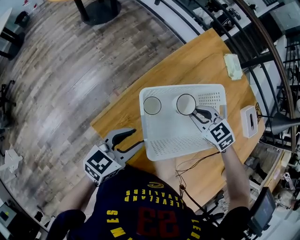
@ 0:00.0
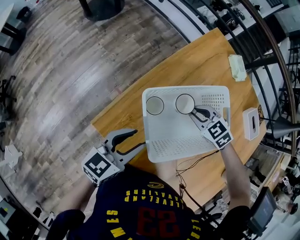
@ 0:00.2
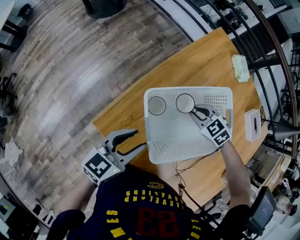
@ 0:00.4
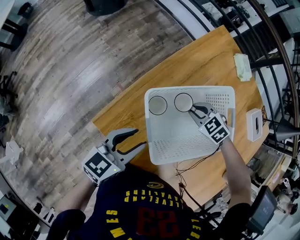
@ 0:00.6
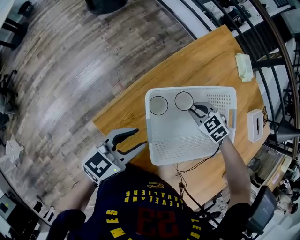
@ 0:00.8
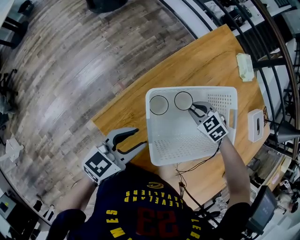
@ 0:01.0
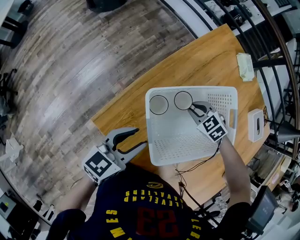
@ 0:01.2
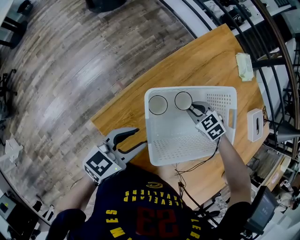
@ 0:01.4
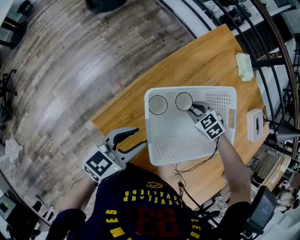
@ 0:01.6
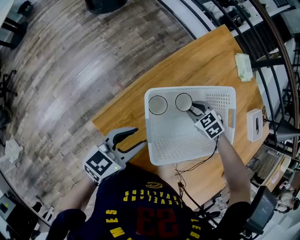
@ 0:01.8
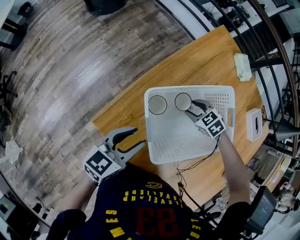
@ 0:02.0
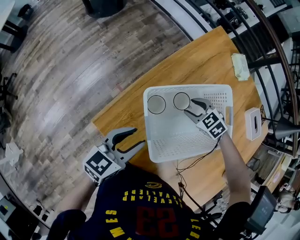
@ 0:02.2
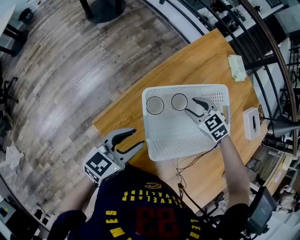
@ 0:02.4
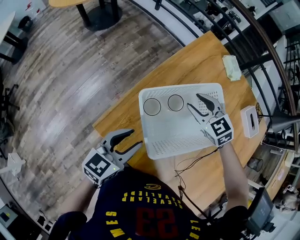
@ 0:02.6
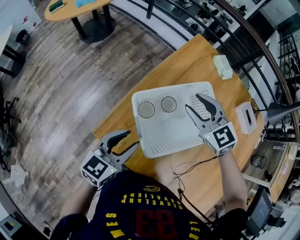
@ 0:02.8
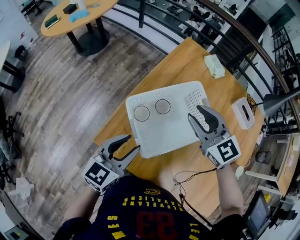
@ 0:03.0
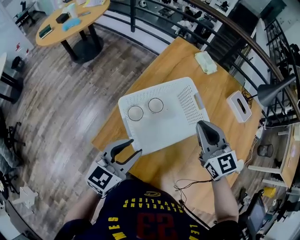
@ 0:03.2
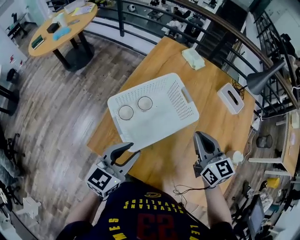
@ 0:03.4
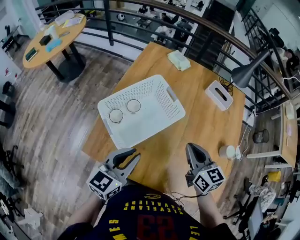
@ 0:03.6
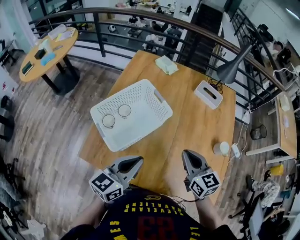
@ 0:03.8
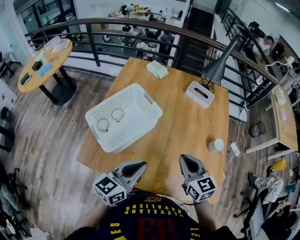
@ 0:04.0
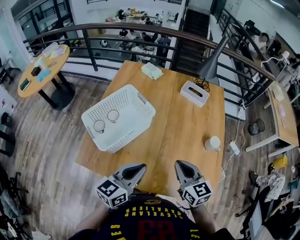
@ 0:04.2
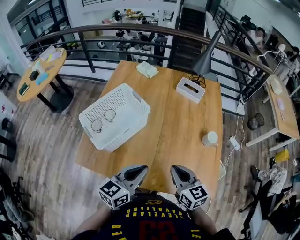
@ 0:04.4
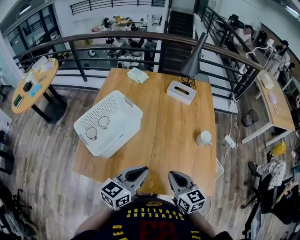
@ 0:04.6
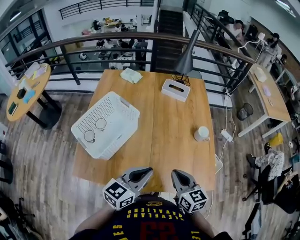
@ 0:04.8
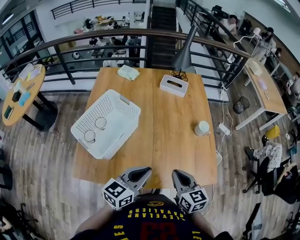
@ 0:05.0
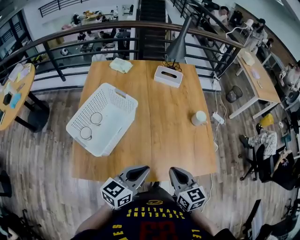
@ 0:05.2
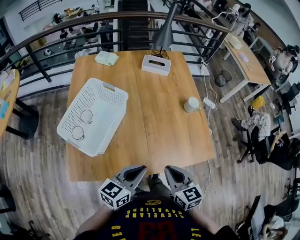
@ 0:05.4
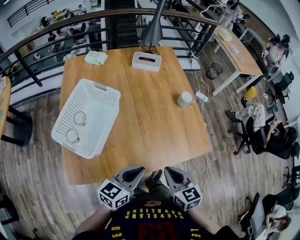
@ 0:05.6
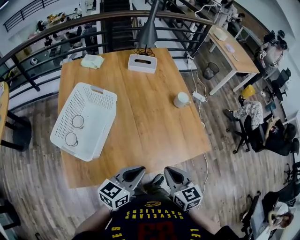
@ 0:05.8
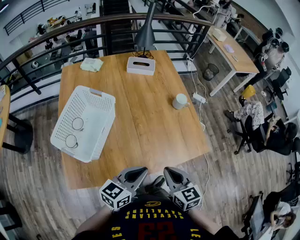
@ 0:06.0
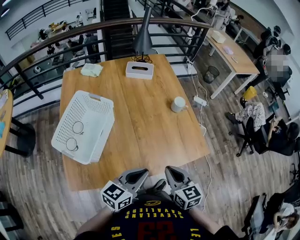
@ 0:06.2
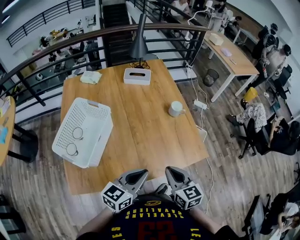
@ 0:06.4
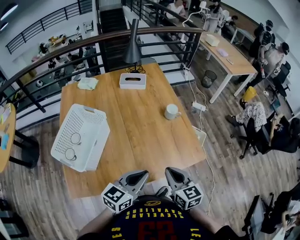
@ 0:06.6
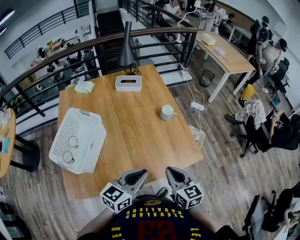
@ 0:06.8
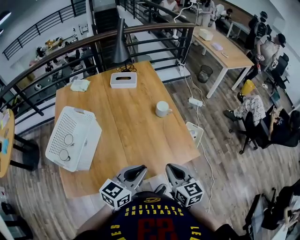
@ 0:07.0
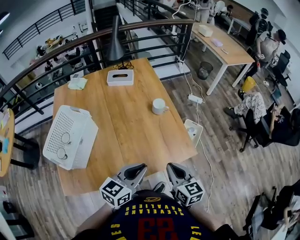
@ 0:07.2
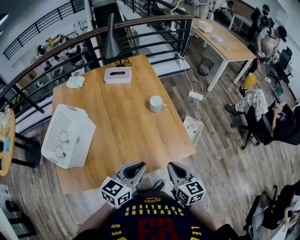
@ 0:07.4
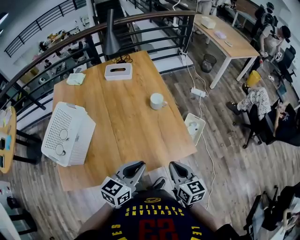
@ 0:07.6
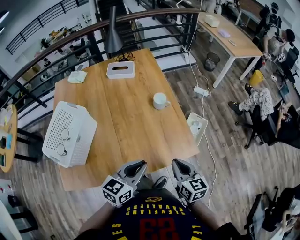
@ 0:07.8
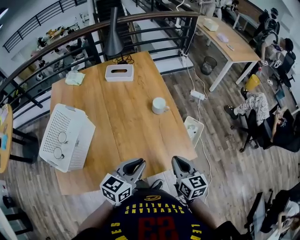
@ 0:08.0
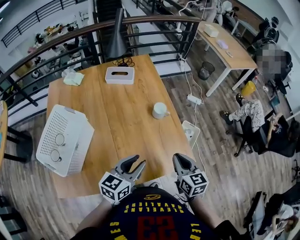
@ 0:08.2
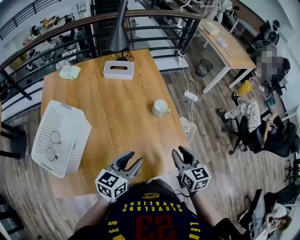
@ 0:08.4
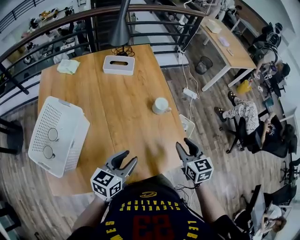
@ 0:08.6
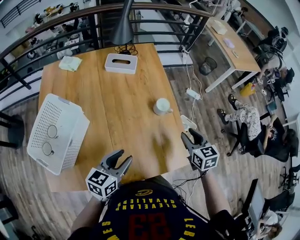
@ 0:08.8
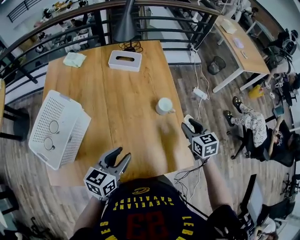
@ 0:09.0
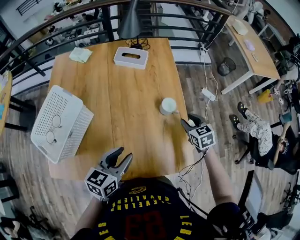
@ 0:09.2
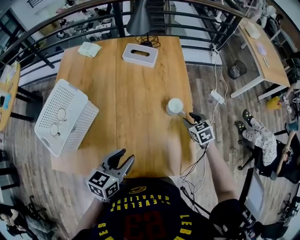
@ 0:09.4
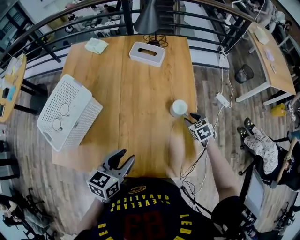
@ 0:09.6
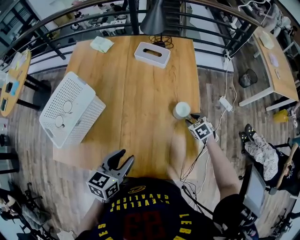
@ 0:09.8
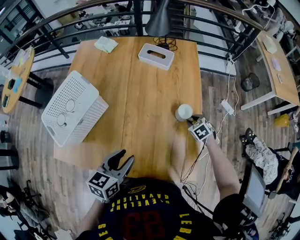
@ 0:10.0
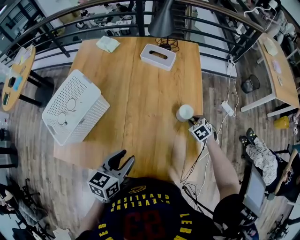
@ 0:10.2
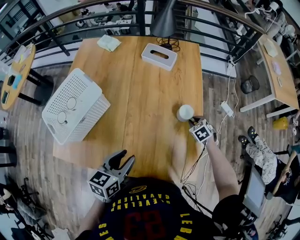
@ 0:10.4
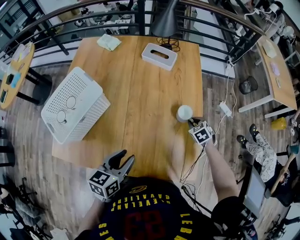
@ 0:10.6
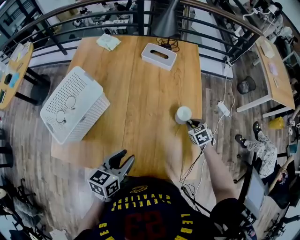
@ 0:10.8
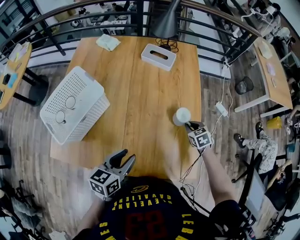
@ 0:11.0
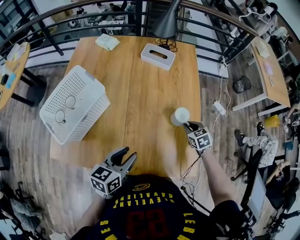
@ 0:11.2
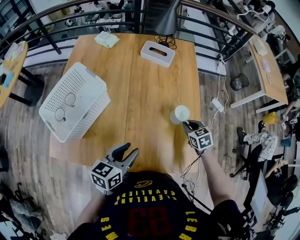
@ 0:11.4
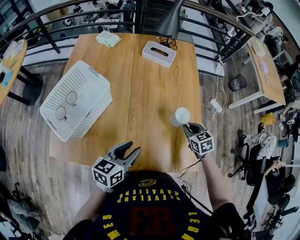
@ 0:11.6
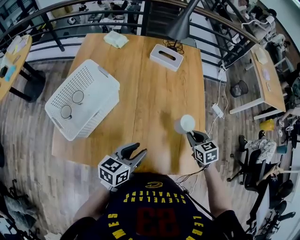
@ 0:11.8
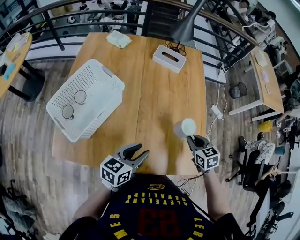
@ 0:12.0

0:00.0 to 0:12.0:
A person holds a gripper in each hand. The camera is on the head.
0:00.0 to 0:01.6: The right gripper shifts about 10 cm downward.
0:01.6 to 0:03.0: The left gripper is displaced upward by about 10 cm. The right gripper goes about 30 cm upward, tips its fingers upward by about 50 degrees, and opens.
0:03.0 to 0:04.4: The left gripper changes place by roughly 30 cm, swivels approximately 20 degrees, and closes its fingers. The right gripper moves some 40 cm, turns by roughly 40 degrees, and closes up.
0:04.4 to 0:06.0: The left gripper changes place by some 10 cm, and changes its angle by some 30 degrees. The right gripper ends up some 15 cm from where it was, and rotates some 30 degrees.
0:06.0 to 0:07.6: The left gripper goes roughly 15 cm to the right and forward, while the right gripper shifts roughly 20 cm to the right.
0:07.6 to 0:09.0: The right gripper moves forward, some 30 cm, rotates approximately 20 degrees, and opens its fingers; the left gripper shifts some 15 cm to the left and forward, and opens up.
0:09.0 to 0:10.4: The right gripper heads downward and forward, covering about 20 cm, turns by approximately 40 degrees, and closes its fingers.
0:10.4 to 0:12.0: The right gripper moves backward, upward and to the left, approximately 20 cm, and rotates roughly 30 degrees.

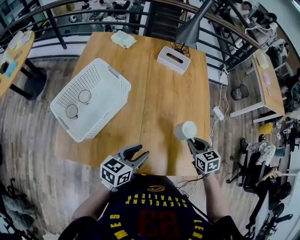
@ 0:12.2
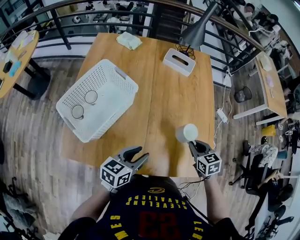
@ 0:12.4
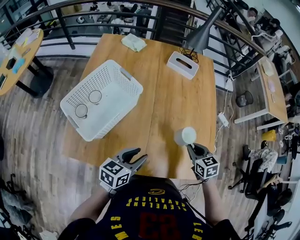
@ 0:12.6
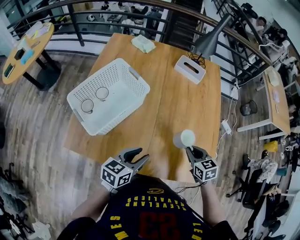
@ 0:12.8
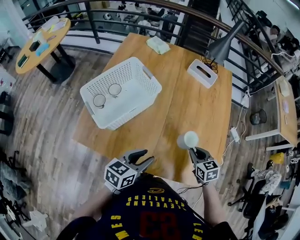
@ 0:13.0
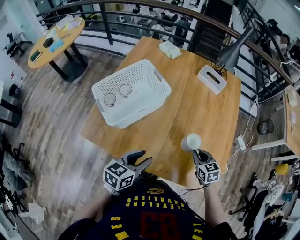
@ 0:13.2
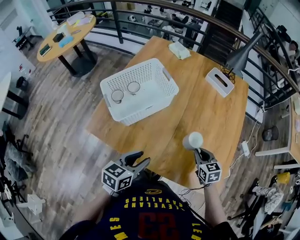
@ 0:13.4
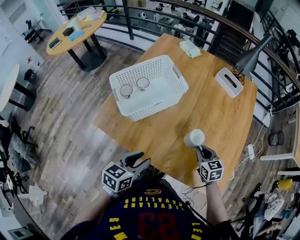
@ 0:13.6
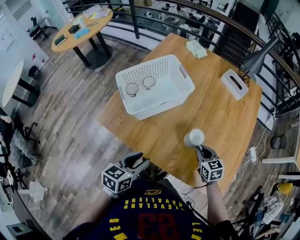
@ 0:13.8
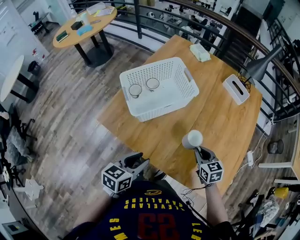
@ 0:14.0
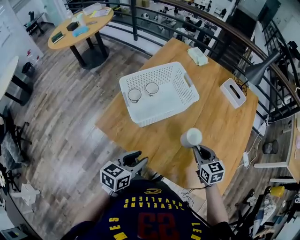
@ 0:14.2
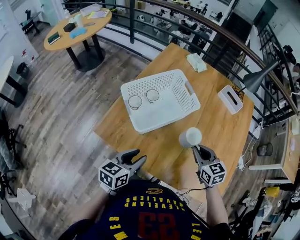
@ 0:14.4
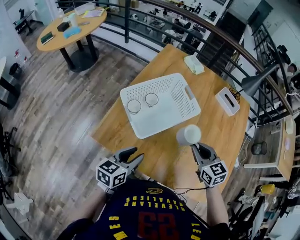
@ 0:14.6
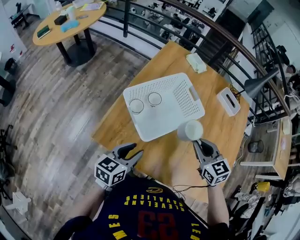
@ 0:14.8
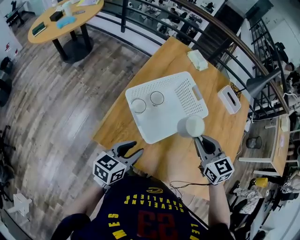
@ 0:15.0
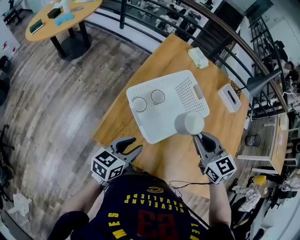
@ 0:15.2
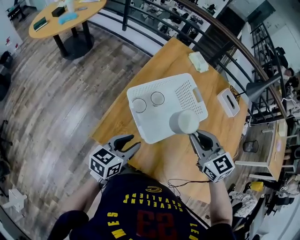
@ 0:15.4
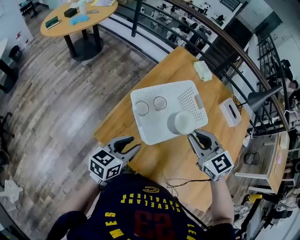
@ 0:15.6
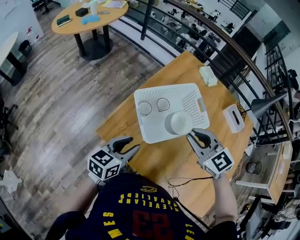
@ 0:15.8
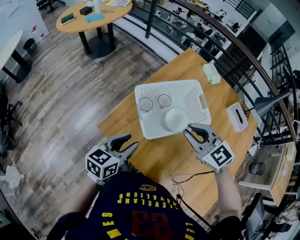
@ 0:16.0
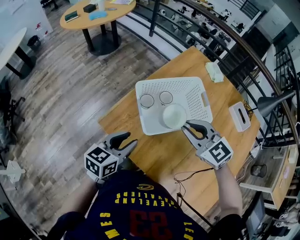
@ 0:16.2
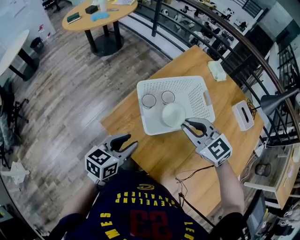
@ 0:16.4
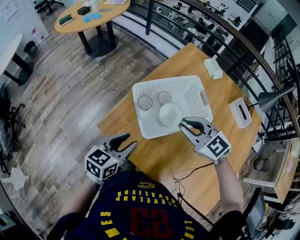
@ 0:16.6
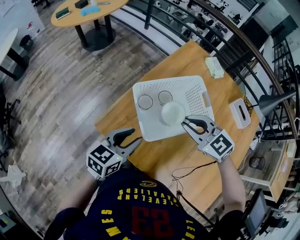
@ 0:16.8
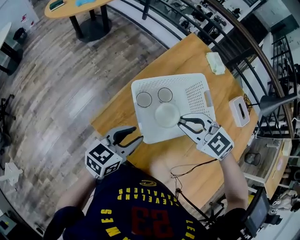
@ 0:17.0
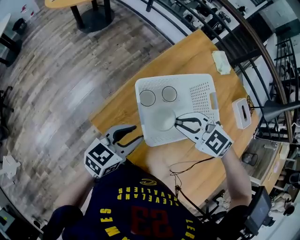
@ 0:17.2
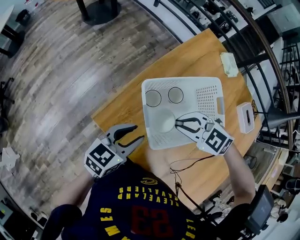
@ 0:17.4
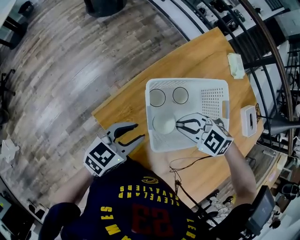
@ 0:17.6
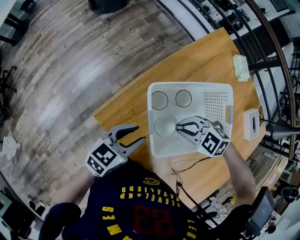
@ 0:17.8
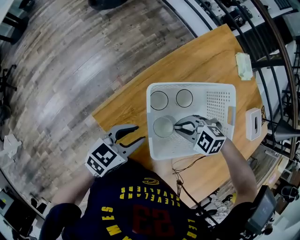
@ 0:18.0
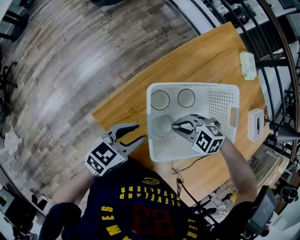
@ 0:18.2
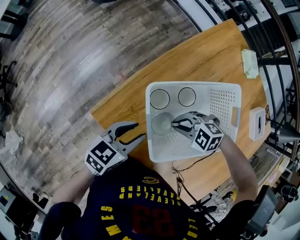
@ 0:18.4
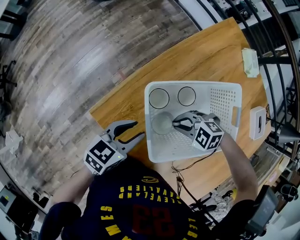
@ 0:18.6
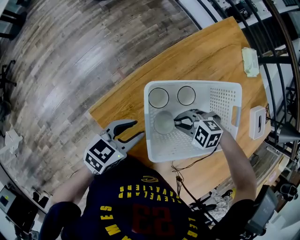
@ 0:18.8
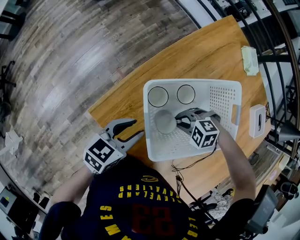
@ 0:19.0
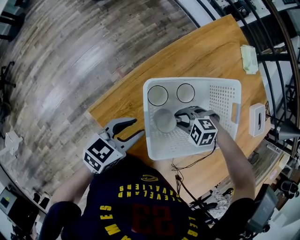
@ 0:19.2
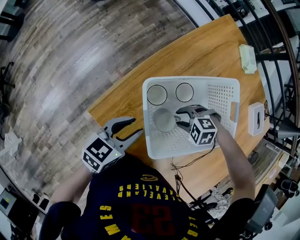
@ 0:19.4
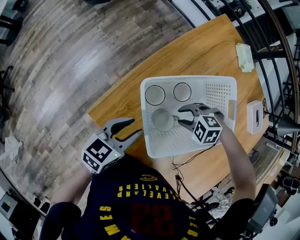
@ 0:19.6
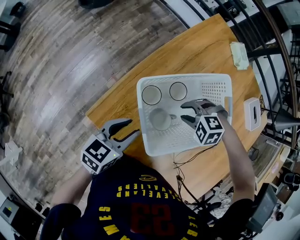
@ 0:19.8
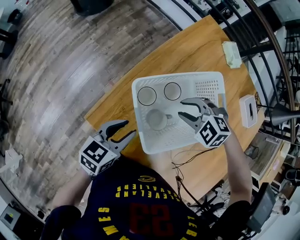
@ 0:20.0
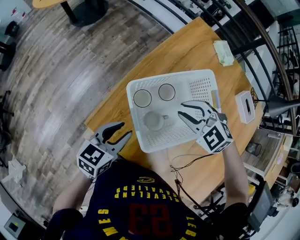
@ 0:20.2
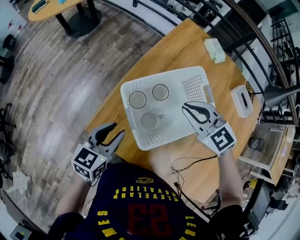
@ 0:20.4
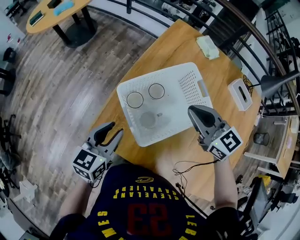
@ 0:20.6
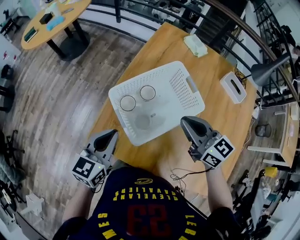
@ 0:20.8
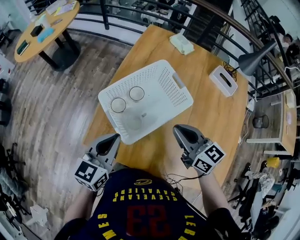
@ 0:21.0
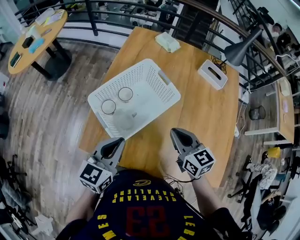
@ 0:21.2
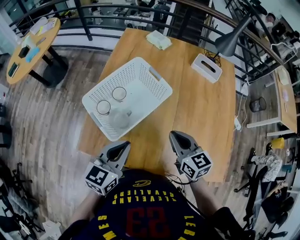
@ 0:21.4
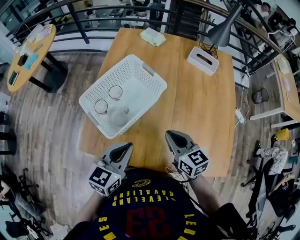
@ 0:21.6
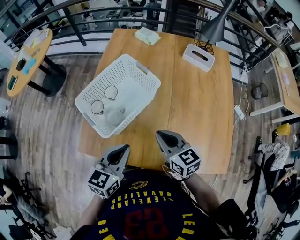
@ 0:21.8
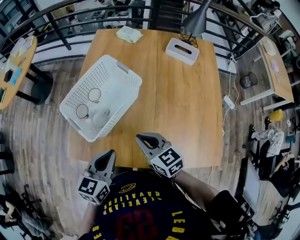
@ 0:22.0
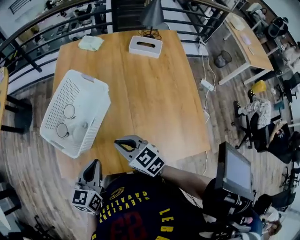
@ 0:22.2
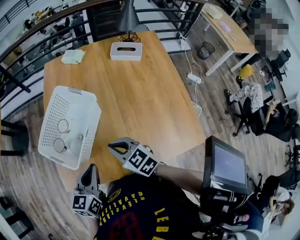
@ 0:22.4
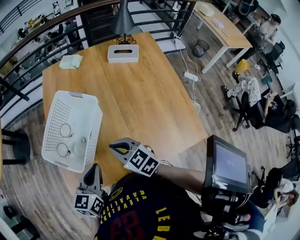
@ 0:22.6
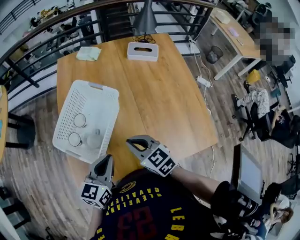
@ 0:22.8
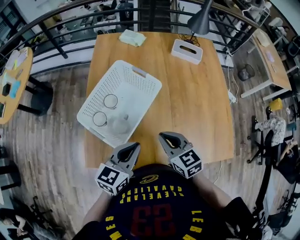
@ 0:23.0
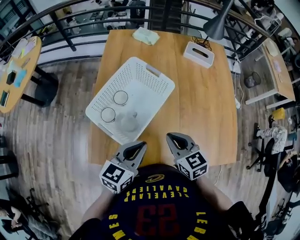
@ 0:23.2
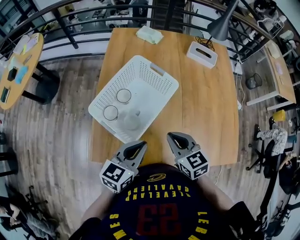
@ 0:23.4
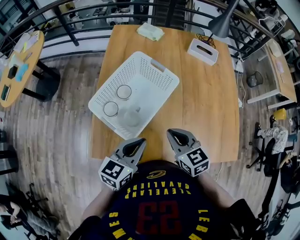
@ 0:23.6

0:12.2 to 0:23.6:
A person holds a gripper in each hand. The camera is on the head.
0:12.2 to 0:13.6: The right gripper shifts approximately 10 cm to the left, and changes its angle by roughly 20 degrees, while the left gripper goes roughly 15 cm backward and to the left, and rotates some 30 degrees.
0:13.6 to 0:15.0: The left gripper shifts about 20 cm to the left and forward, while the right gripper heads to the left, upward and forward, covering approximately 30 cm.
0:15.0 to 0:16.4: The right gripper ends up about 10 cm from where it was, and swivels approximately 40 degrees.
0:16.4 to 0:17.8: The right gripper heads downward, covering some 15 cm, and rotates roughly 50 degrees, while the left gripper shifts by approximately 10 cm.
0:17.8 to 0:19.4: The right gripper is displaced downward by approximately 10 cm, and opens.
0:19.4 to 0:20.8: The right gripper is displaced upward by roughly 25 cm, tilts its fingers approximately 60 degrees upward, and closes its fingers. The left gripper goes roughly 10 cm upward, and closes up.
0:20.8 to 0:22.2: The left gripper is displaced to the right and backward by roughly 15 cm. The right gripper heads backward and downward, covering about 15 cm.
0:22.2 to 0:23.6: The grippers move only a little.
